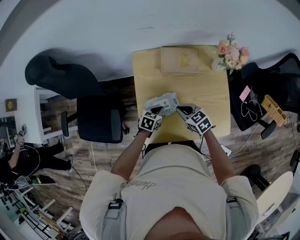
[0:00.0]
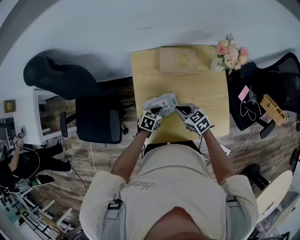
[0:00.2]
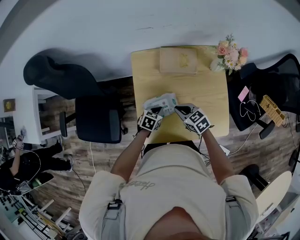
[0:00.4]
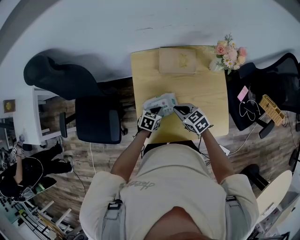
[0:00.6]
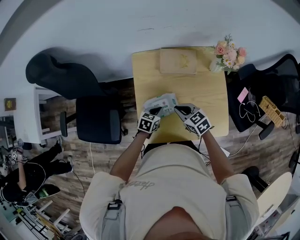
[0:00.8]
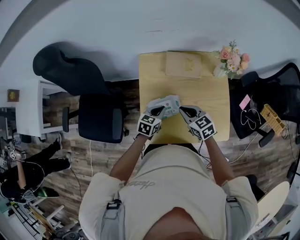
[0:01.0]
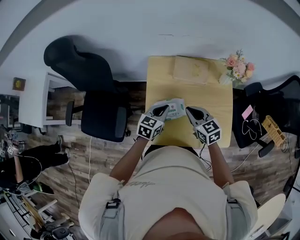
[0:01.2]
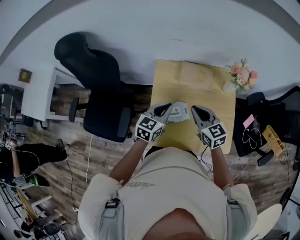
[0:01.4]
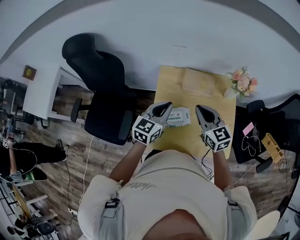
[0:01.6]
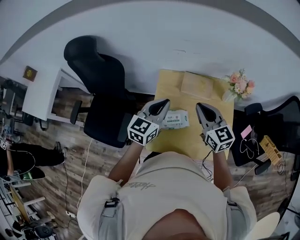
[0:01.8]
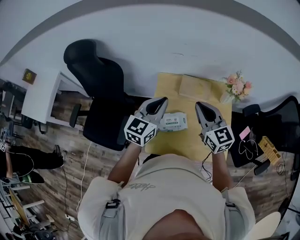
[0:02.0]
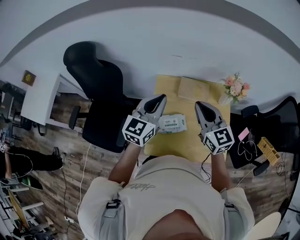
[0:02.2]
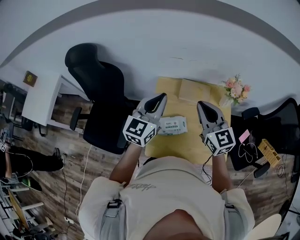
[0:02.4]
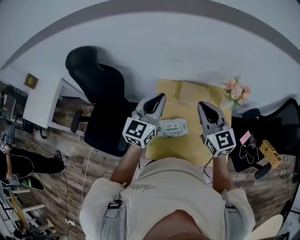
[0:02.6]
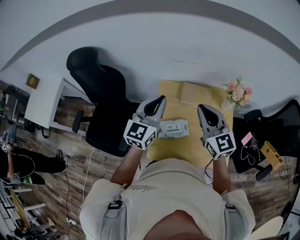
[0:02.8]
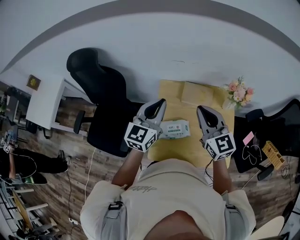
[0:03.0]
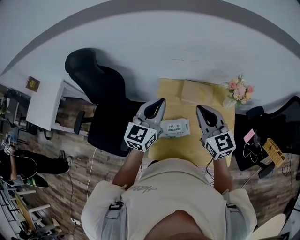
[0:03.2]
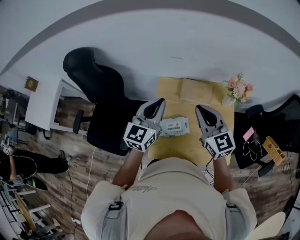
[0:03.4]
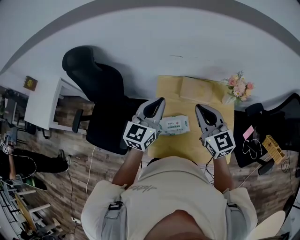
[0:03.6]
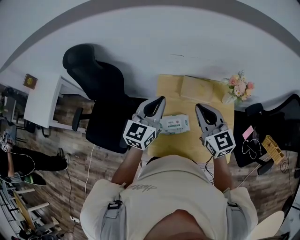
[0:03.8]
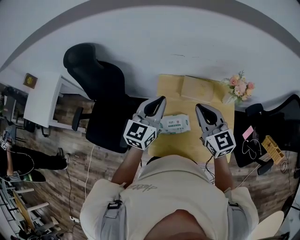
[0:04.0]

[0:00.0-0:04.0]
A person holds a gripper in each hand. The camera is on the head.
0:00.0 to 0:01.4: Both grippers move upward, approximately 20 cm. The left gripper turns by roughly 30 degrees; the right gripper changes its angle by approximately 20 degrees.
0:01.4 to 0:02.6: Both grippers move upward, some 20 cm. The right gripper swivels some 20 degrees, while the left gripper turns by about 30 degrees.
0:02.6 to 0:04.0: There are only small adjustments of the grippers.

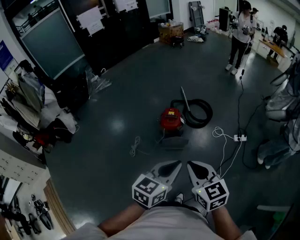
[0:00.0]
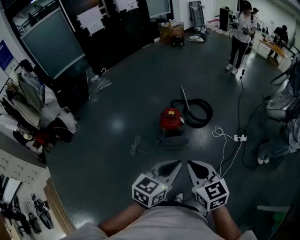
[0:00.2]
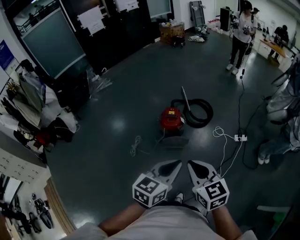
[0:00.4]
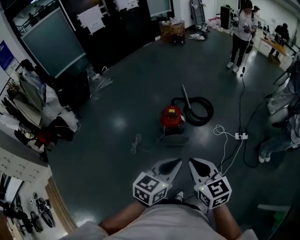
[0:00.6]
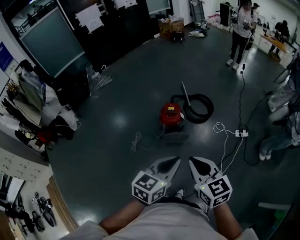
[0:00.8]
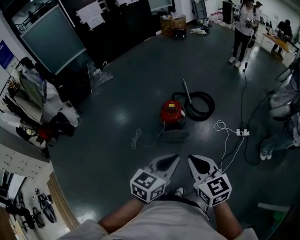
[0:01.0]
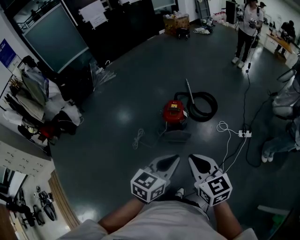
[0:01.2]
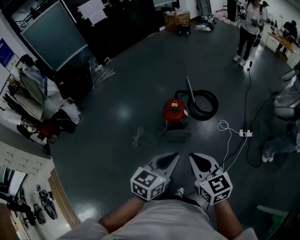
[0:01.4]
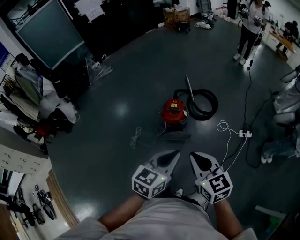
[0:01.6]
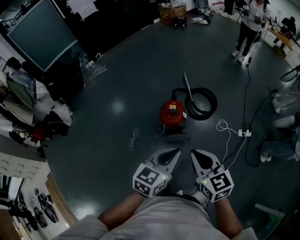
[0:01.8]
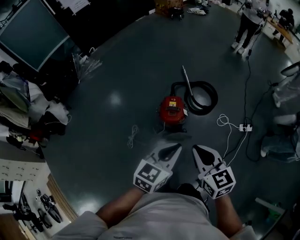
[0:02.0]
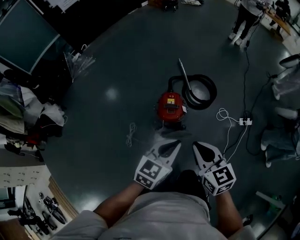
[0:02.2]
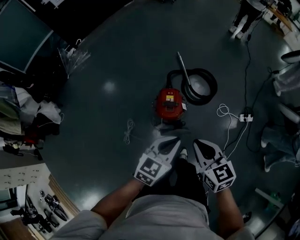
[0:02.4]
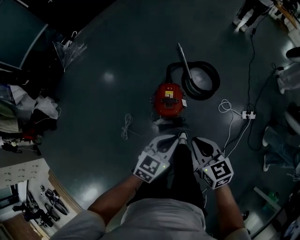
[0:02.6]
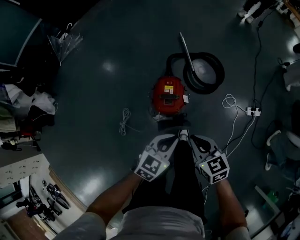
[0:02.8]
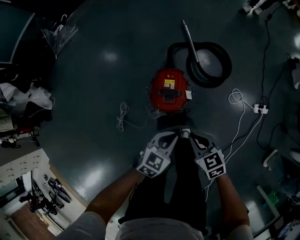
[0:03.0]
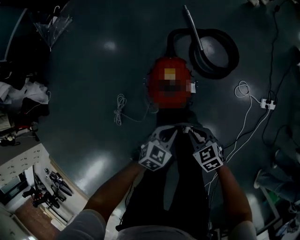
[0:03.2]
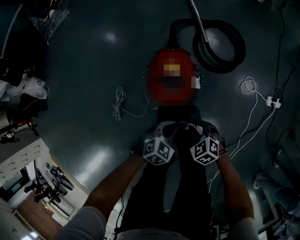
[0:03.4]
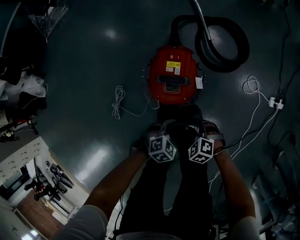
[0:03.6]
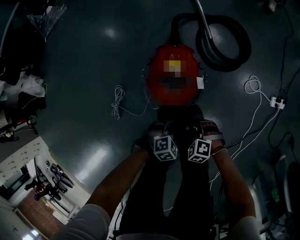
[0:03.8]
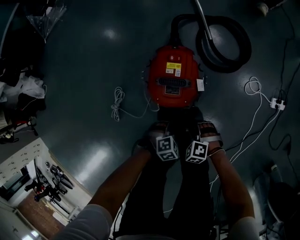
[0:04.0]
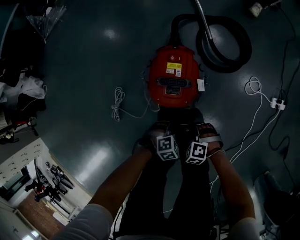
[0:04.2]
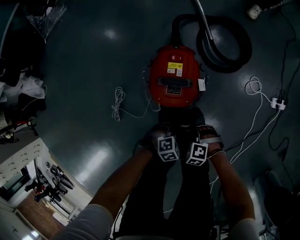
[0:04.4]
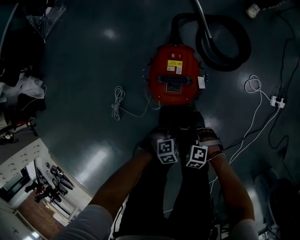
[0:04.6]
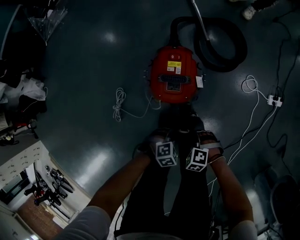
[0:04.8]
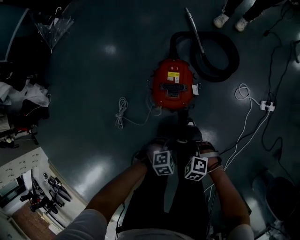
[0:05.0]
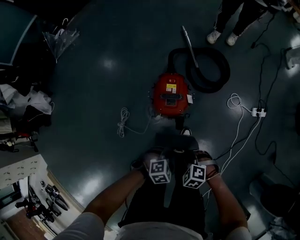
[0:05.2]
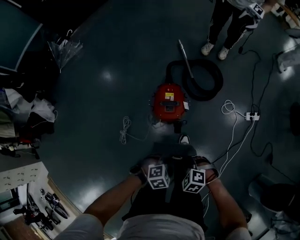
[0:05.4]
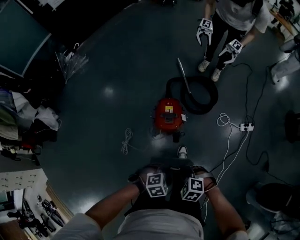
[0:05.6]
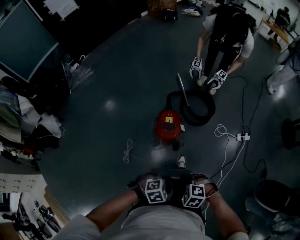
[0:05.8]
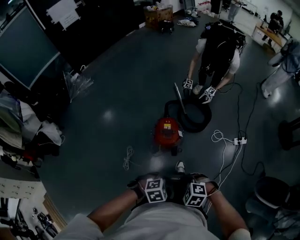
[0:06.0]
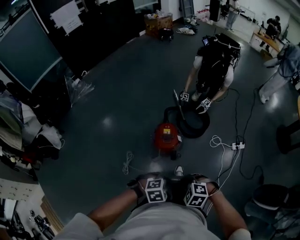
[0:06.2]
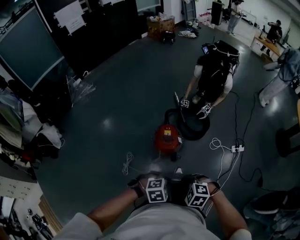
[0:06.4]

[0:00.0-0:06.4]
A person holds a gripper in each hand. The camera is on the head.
0:00.0 to 0:01.6: Both grippers move forward, approximately 10 cm.
0:01.6 to 0:03.2: The grippers both shift downward and forward by about 60 cm. The right gripper turns by approximately 30 degrees. The left gripper changes its angle by approximately 30 degrees.
0:03.2 to 0:04.8: The two grippers go approximately 15 cm downward. The right gripper rotates some 50 degrees, and opens, then closes again. The left gripper changes its angle by roughly 40 degrees, and opens, then closes once more.
0:04.8 to 0:06.4: The grippers both shift upward by some 50 cm.

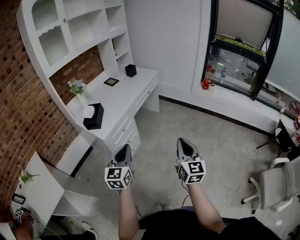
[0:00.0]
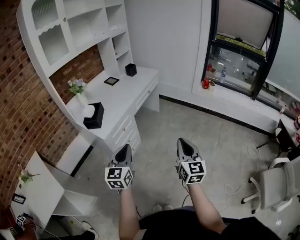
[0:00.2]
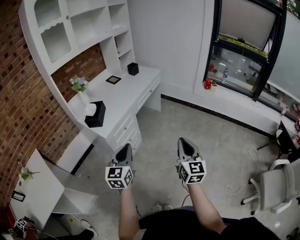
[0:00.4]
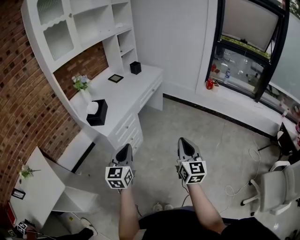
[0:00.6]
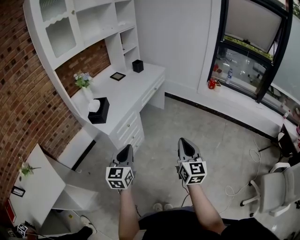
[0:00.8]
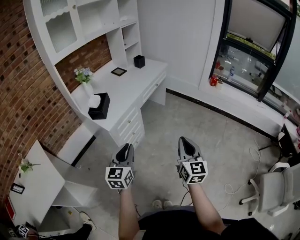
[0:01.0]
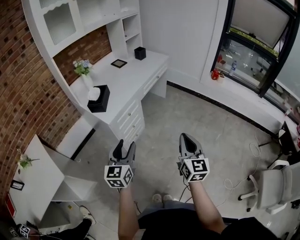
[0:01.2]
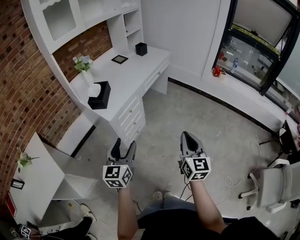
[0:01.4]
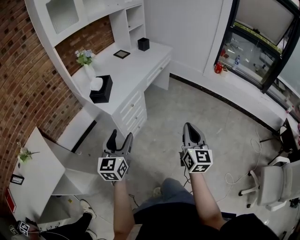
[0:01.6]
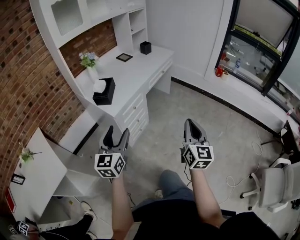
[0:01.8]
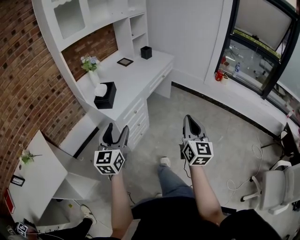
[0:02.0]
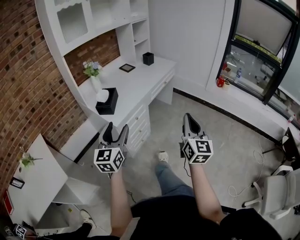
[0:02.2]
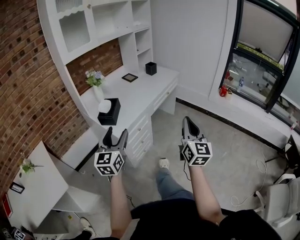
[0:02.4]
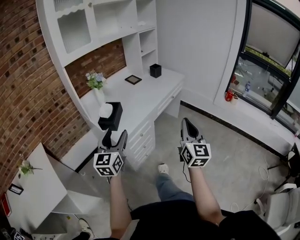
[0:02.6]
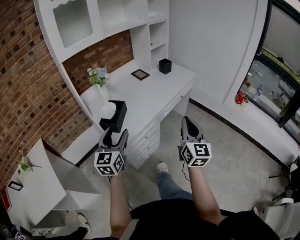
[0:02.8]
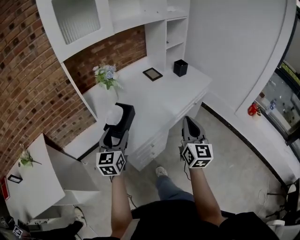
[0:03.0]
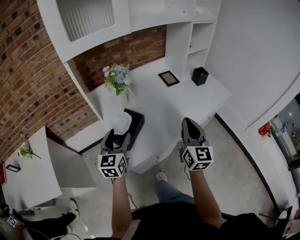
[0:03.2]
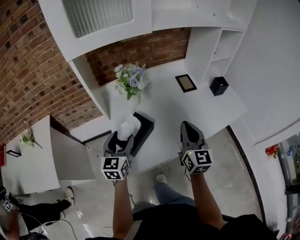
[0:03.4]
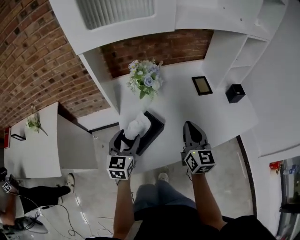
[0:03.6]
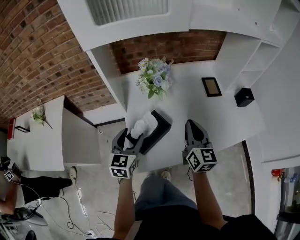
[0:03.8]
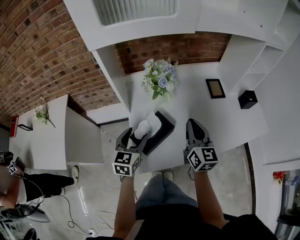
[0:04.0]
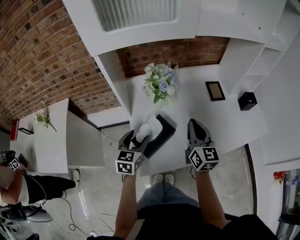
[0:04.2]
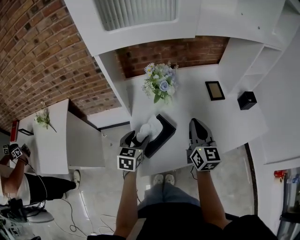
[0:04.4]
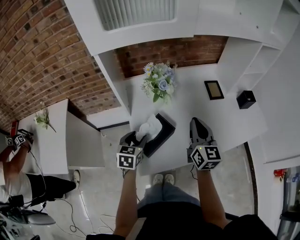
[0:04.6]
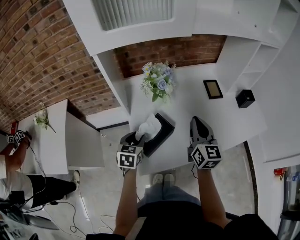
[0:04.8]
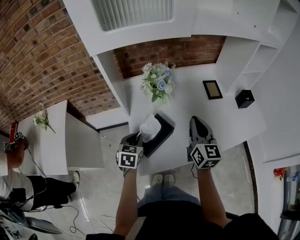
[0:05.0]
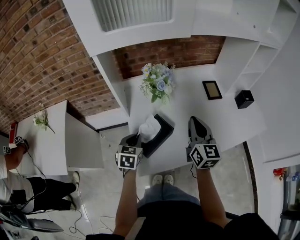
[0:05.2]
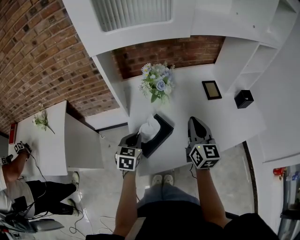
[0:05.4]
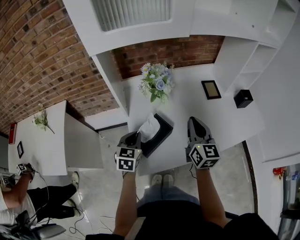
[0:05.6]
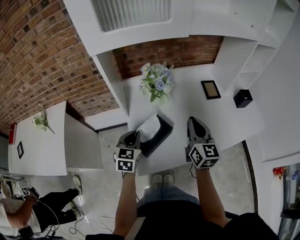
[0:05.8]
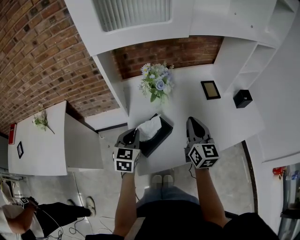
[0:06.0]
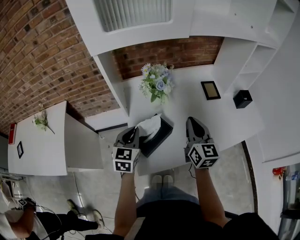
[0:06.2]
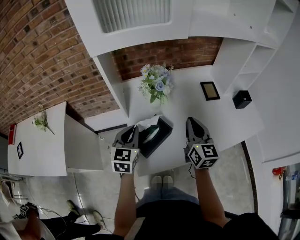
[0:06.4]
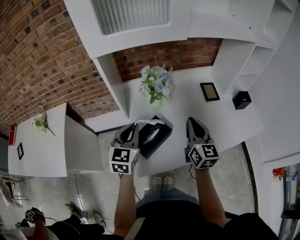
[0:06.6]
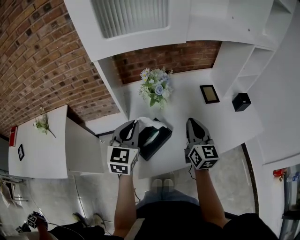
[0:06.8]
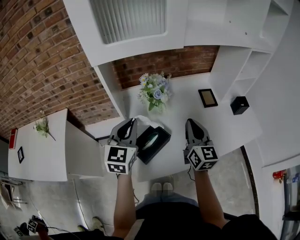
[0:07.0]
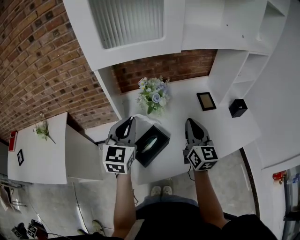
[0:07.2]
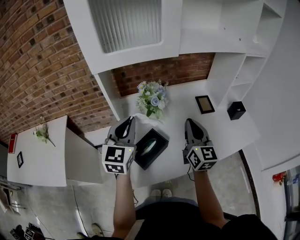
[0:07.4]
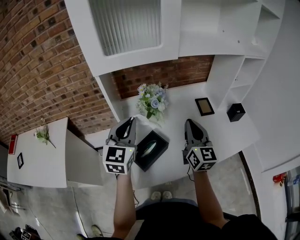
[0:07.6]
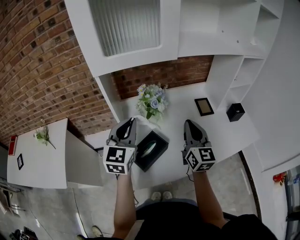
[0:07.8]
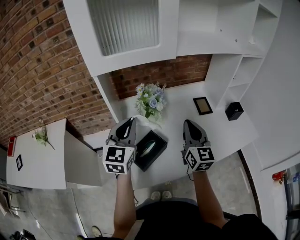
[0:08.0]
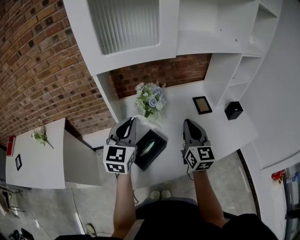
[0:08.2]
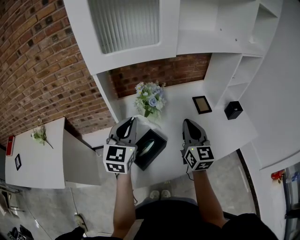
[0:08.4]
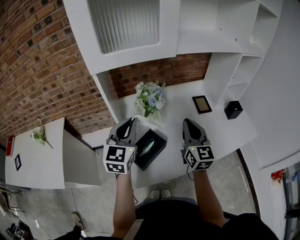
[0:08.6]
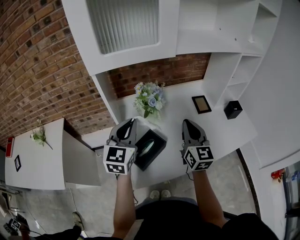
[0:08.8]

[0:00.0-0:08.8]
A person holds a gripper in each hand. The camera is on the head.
0:00.0 to 0:01.4: The left gripper travels to the left by roughly 5 cm, and opens; the right gripper shifts by some 5 cm.
0:01.4 to 0:03.0: The right gripper heads forward, covering approximately 40 cm. Meanwhile the left gripper shifts roughly 35 cm forward and to the left.
0:03.0 to 0:04.4: The left gripper moves about 20 cm, and rotates about 30 degrees. The right gripper ends up approximately 30 cm from where it was, and swivels some 30 degrees.
0:04.4 to 0:05.8: The left gripper closes.
0:05.8 to 0:07.4: The right gripper is displaced upward by roughly 5 cm. Meanwhile the left gripper goes some 20 cm upward, and rotates about 20 degrees.
0:07.4 to 0:08.8: The grippers stay close to where they were, moving slightly.

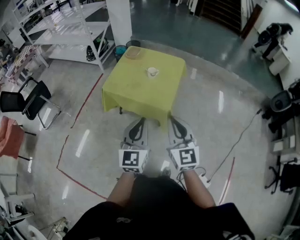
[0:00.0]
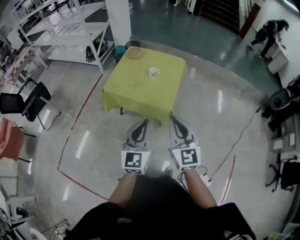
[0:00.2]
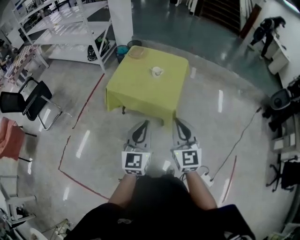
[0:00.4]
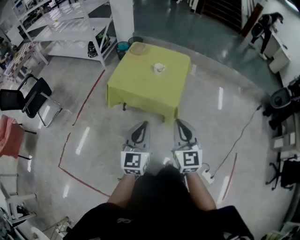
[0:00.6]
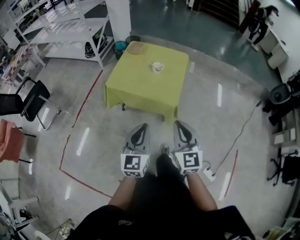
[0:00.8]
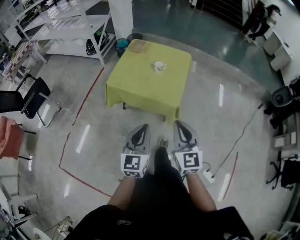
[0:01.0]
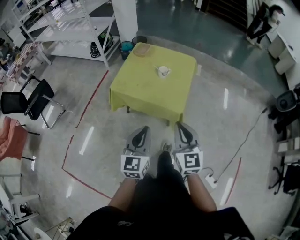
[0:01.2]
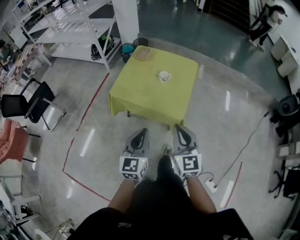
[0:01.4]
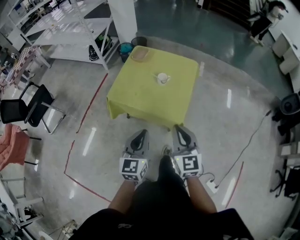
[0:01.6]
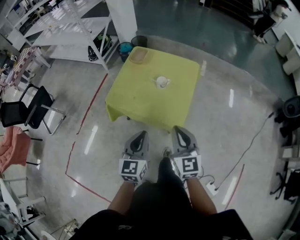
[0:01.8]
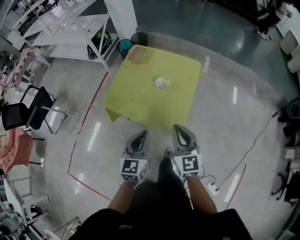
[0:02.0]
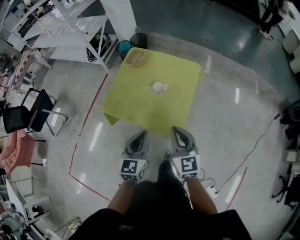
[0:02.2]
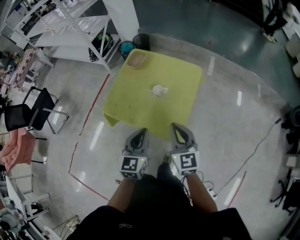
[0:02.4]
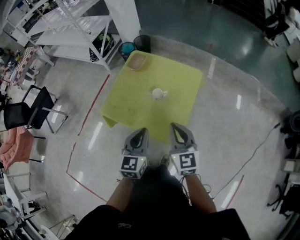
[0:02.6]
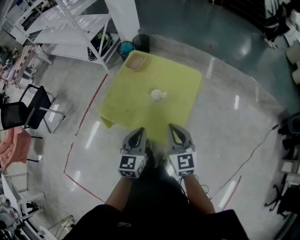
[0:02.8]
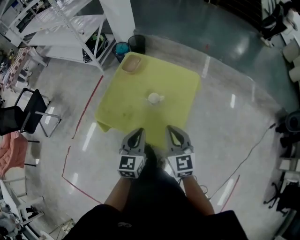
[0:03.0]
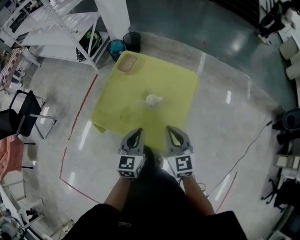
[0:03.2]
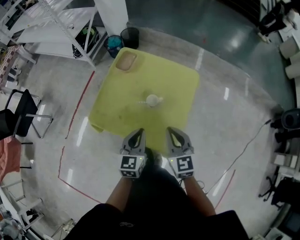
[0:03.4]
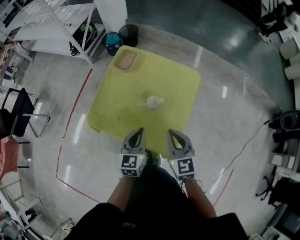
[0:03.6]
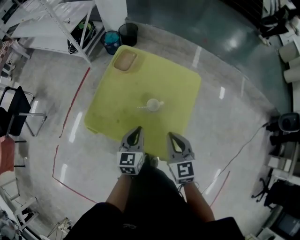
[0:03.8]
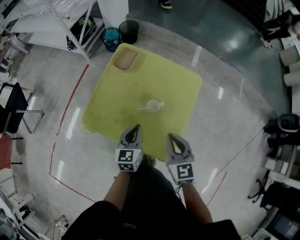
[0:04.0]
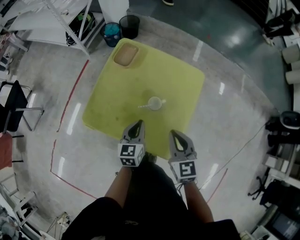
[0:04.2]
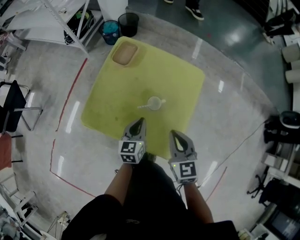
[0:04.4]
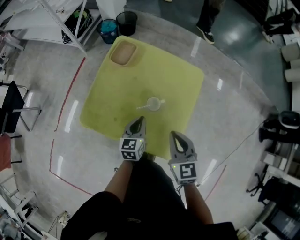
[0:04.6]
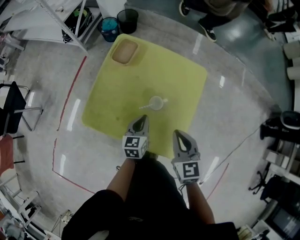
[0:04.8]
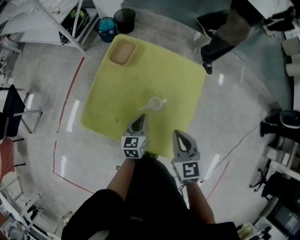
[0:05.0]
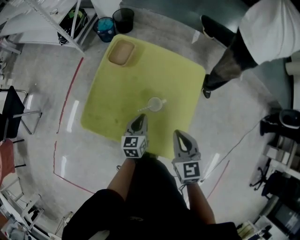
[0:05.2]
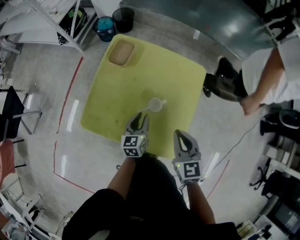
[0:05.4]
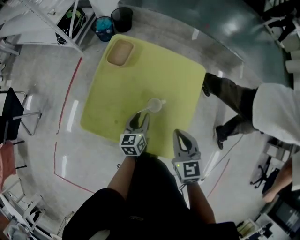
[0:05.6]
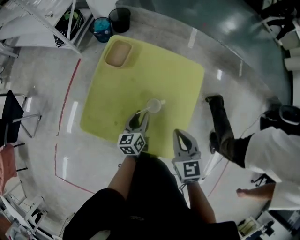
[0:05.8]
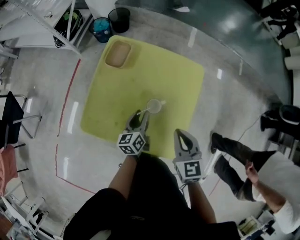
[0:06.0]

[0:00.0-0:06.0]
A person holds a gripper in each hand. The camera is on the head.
0:00.0 to 0:01.6: The left gripper travels forward, downward and to the left by roughly 15 cm. The right gripper moves forward and downward, approximately 15 cm.
0:01.6 to 0:03.0: The grippers both shift forward by approximately 25 cm.
0:03.0 to 0:04.4: The right gripper goes approximately 15 cm forward and downward. The left gripper goes some 20 cm downward and forward.
0:04.4 to 0:06.0: The left gripper is displaced forward by some 5 cm, and opens up.
